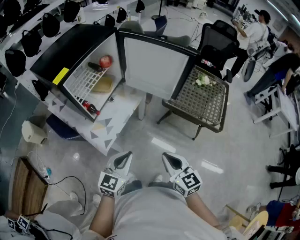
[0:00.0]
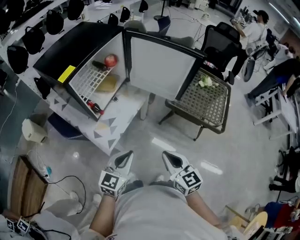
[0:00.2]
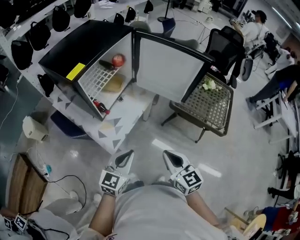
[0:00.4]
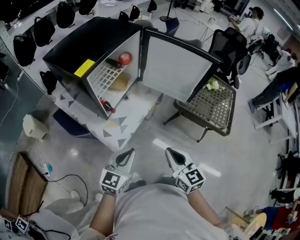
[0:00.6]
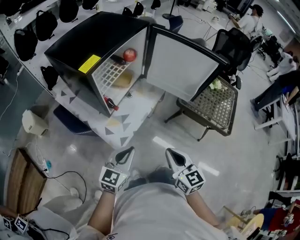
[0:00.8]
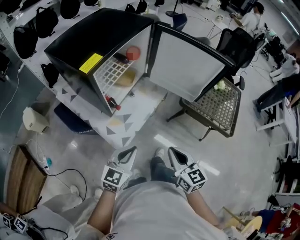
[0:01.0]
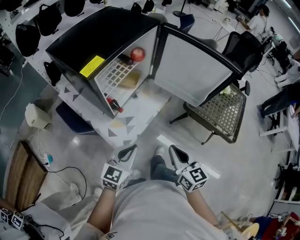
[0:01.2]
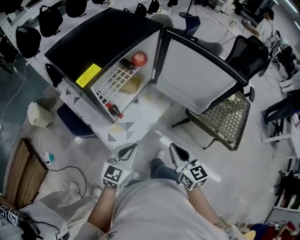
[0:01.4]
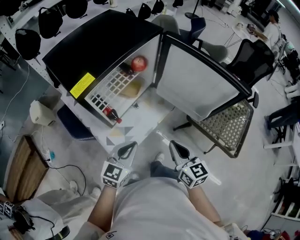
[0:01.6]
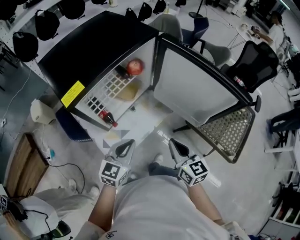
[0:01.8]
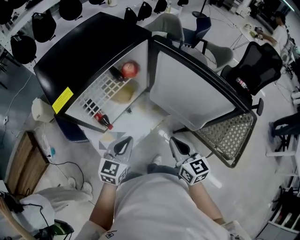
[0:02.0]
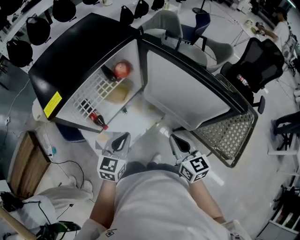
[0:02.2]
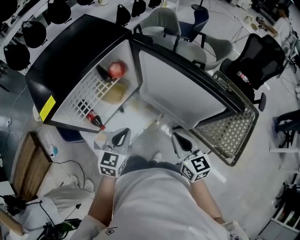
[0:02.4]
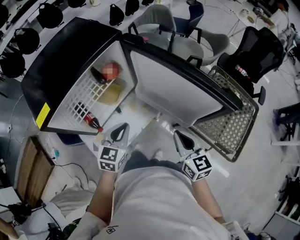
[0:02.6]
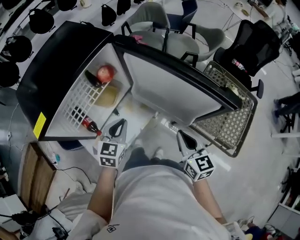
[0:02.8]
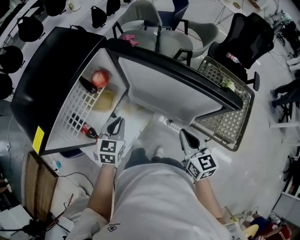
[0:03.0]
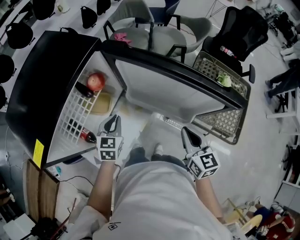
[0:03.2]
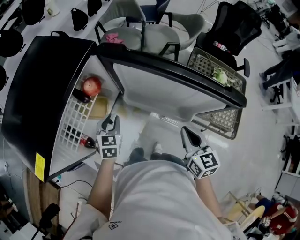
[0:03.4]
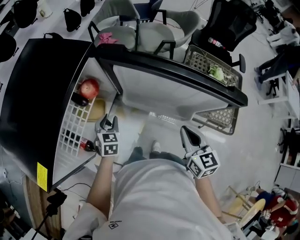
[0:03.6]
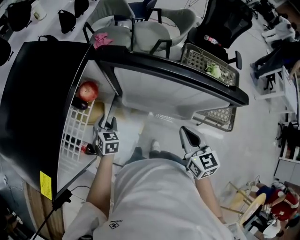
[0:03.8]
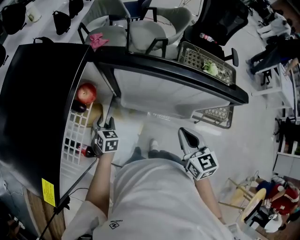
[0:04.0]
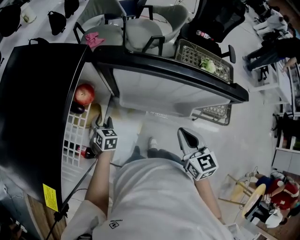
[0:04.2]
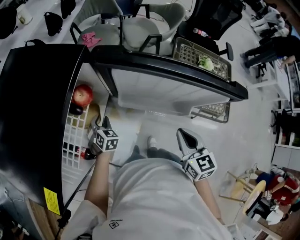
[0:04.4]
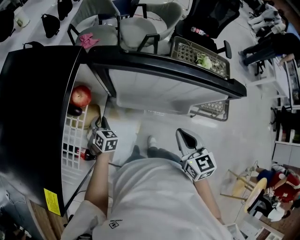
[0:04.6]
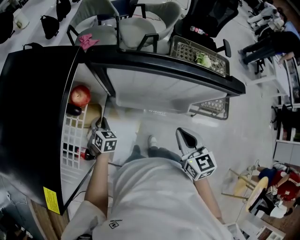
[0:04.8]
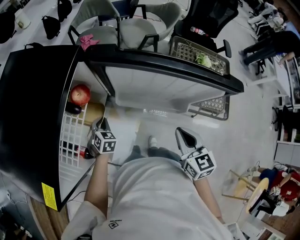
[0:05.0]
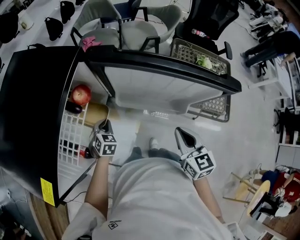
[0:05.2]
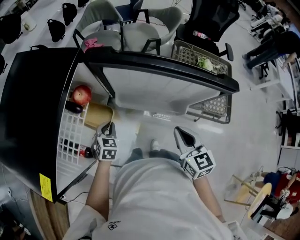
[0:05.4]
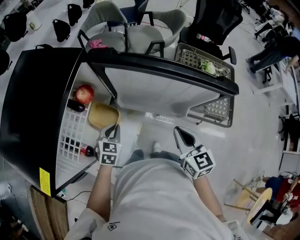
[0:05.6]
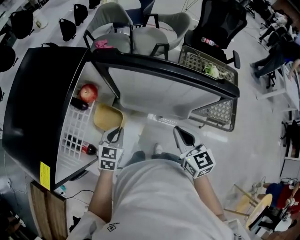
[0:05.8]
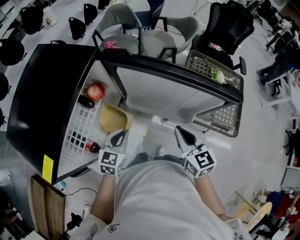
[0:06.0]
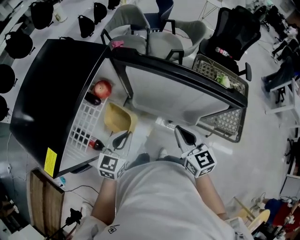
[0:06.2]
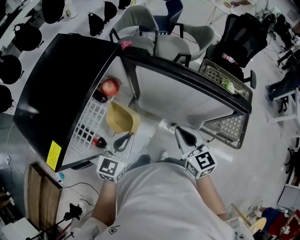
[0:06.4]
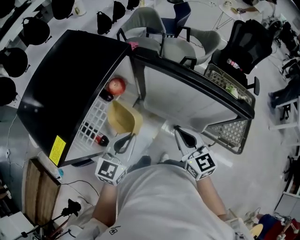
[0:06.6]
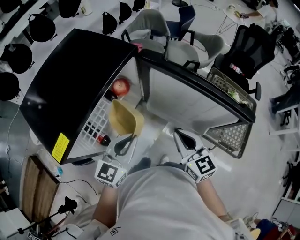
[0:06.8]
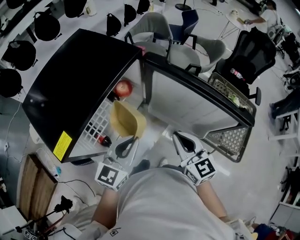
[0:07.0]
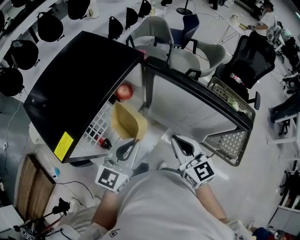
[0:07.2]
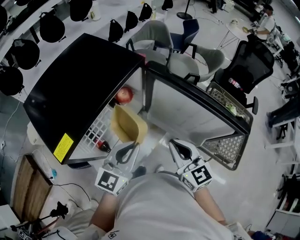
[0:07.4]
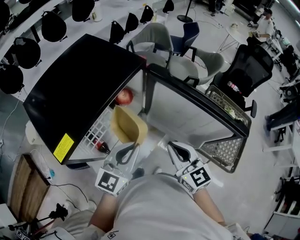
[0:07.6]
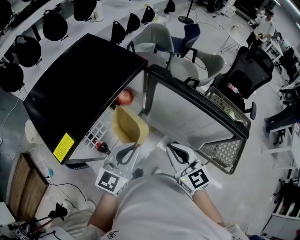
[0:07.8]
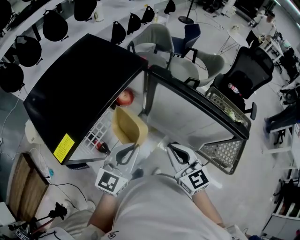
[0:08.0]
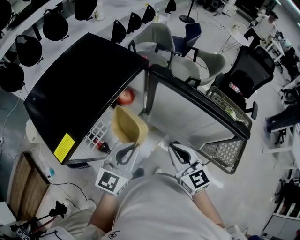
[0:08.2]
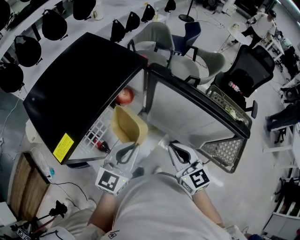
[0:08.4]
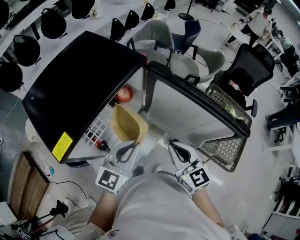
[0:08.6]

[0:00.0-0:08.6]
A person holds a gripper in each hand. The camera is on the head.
0:00.0 to 0:01.4: The two grippers go roughly 15 cm forward and to the left.
0:01.4 to 0:02.8: The right gripper heads to the right and forward, covering some 25 cm. The left gripper heads forward and to the right, covering about 25 cm.
0:02.8 to 0:04.4: The left gripper heads downward, forward and to the left, covering roughly 25 cm, changes its angle by some 30 degrees, and opens up. Meanwhile the right gripper changes its angle by some 20 degrees.
0:04.4 to 0:05.8: The left gripper heads upward, backward and to the right, covering roughly 15 cm, changes its angle by roughly 30 degrees, and closes up.
0:05.8 to 0:07.2: The left gripper heads upward, covering approximately 20 cm, and rotates about 30 degrees, while the right gripper heads to the left and upward, covering some 10 cm, and swivels about 20 degrees.
0:07.2 to 0:08.6: The grippers make only small movements.

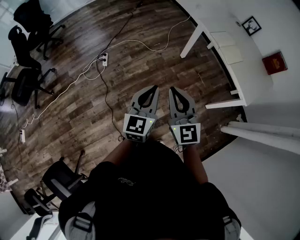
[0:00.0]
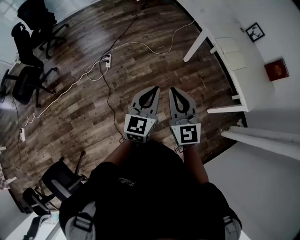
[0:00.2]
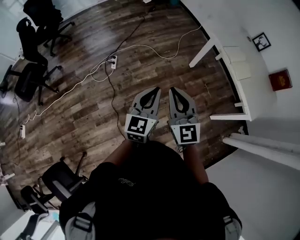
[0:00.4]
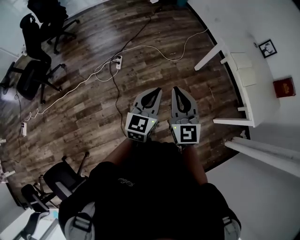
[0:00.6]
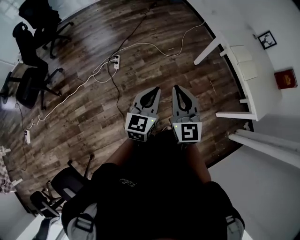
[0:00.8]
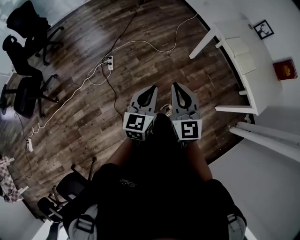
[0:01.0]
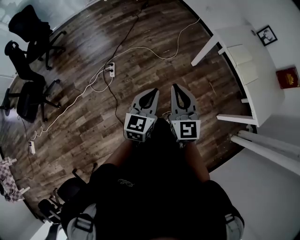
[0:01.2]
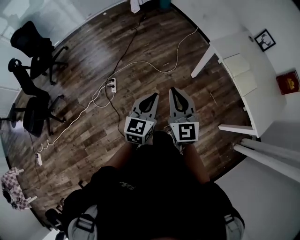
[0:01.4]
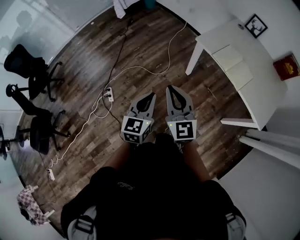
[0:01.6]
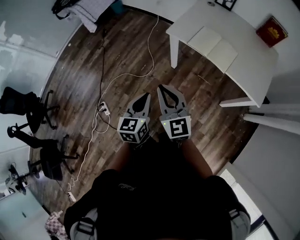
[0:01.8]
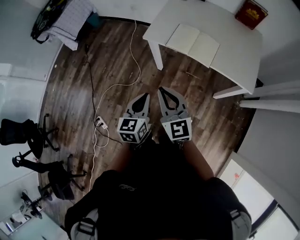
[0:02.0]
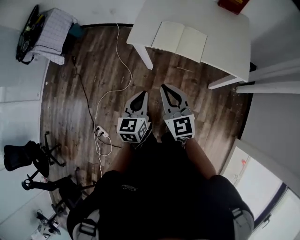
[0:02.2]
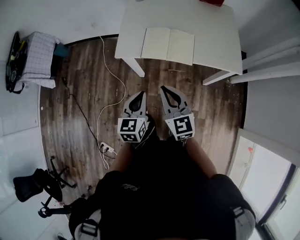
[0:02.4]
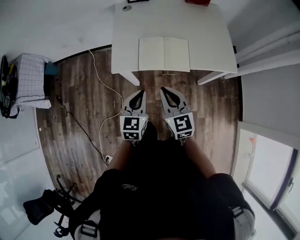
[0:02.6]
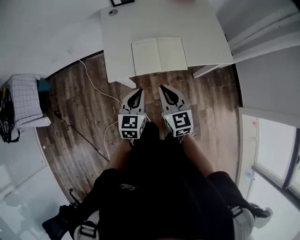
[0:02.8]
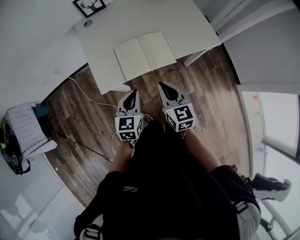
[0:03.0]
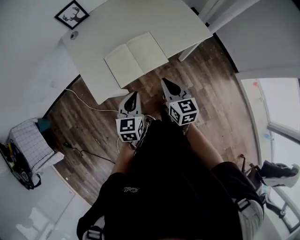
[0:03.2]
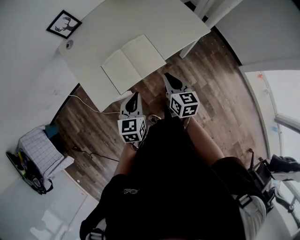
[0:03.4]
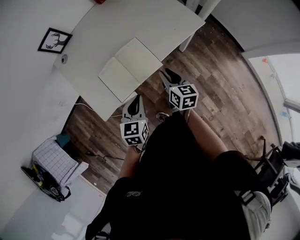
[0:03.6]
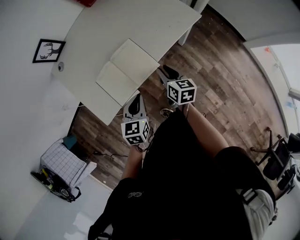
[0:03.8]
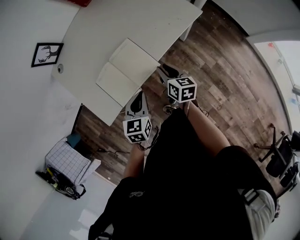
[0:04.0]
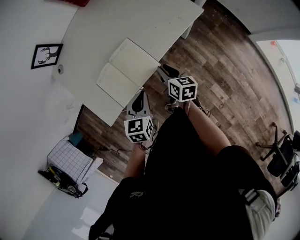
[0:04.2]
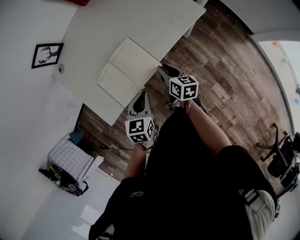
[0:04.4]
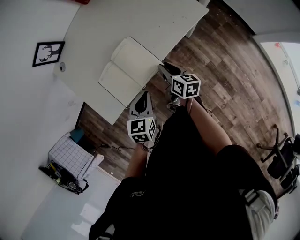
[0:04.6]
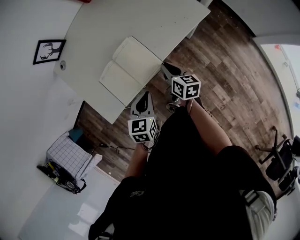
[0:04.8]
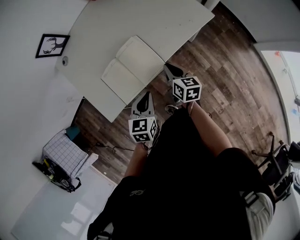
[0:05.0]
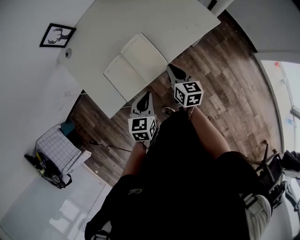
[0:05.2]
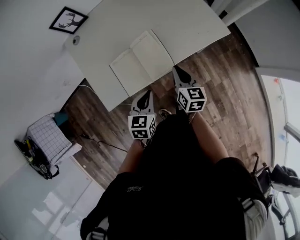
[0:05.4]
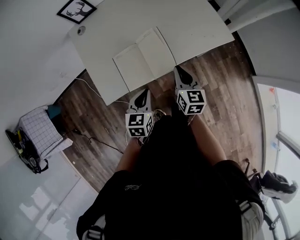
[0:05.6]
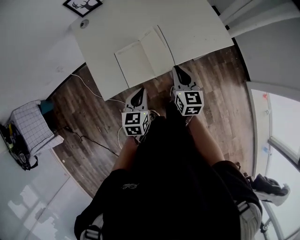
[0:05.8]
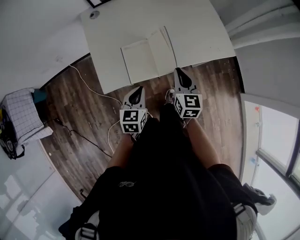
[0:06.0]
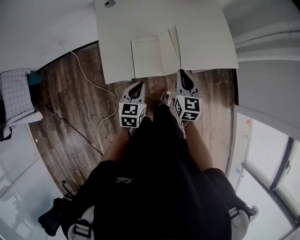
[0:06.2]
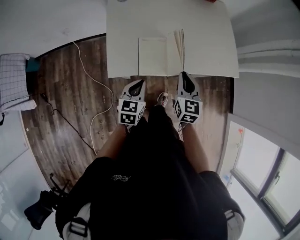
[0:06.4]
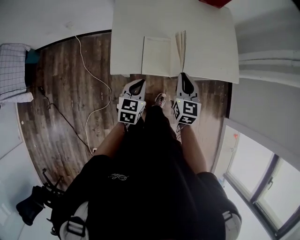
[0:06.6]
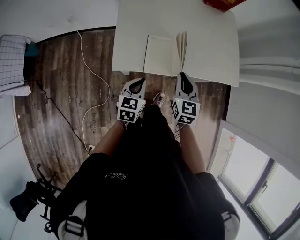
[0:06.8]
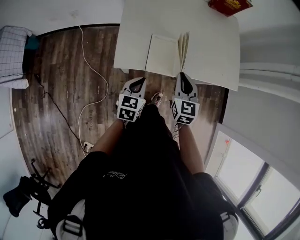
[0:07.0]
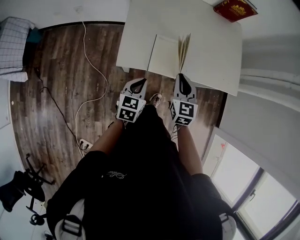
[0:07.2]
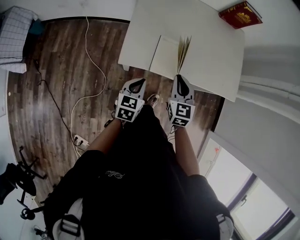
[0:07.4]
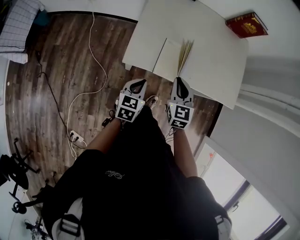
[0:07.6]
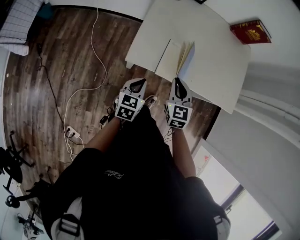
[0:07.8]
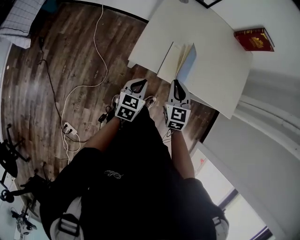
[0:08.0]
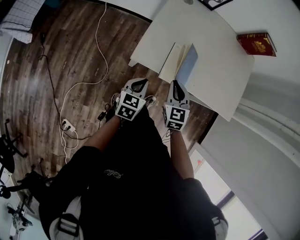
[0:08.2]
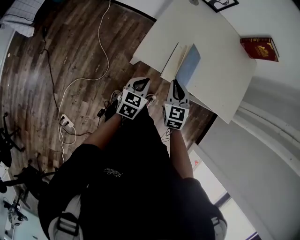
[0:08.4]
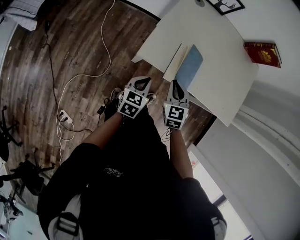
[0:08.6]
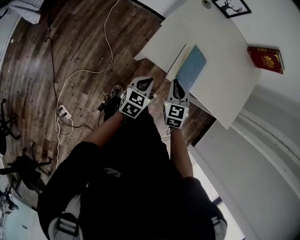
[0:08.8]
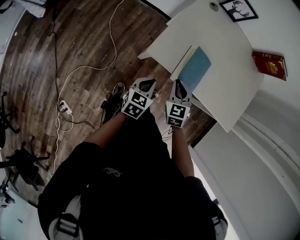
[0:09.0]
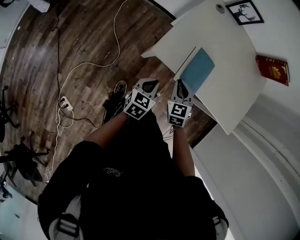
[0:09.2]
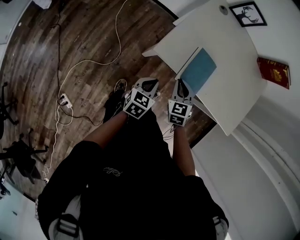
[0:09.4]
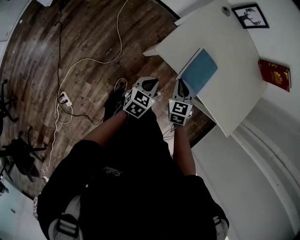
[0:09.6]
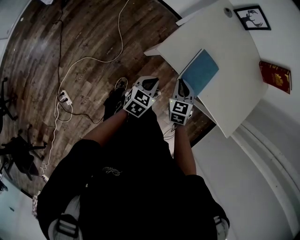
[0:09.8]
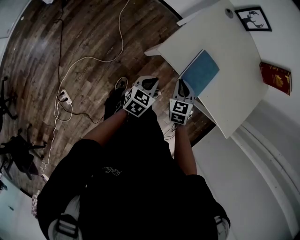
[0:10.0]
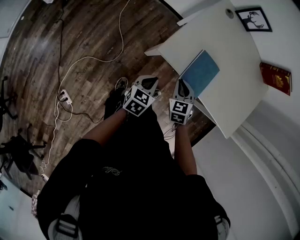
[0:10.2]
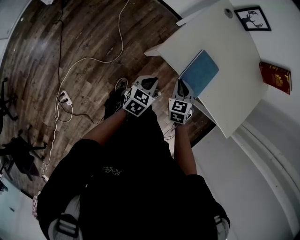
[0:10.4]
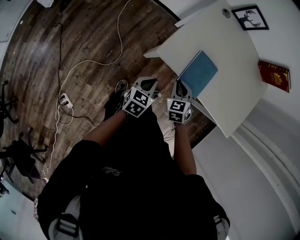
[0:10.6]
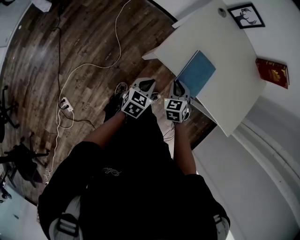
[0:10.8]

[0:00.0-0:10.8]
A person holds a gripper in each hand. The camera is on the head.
0:00.0 to 0:01.6: Both grippers travel together forward, approximately 30 cm.
0:01.6 to 0:03.0: The left gripper moves approximately 40 cm, and turns by roughly 60 degrees; the right gripper moves some 35 cm, and swivels about 70 degrees.
0:03.0 to 0:04.6: The right gripper goes about 25 cm downward, forward and to the right, twists about 40 degrees clockwise, seen from behind, and opens up. Meanwhile the left gripper goes roughly 15 cm to the right, forward and downward, and changes its angle by some 20 degrees.
0:04.6 to 0:06.2: The right gripper travels upward and to the left by approximately 15 cm, and rotates around the line of its fingers by some 50 degrees, counterclockwise from behind, while the left gripper heads to the left, covering about 15 cm, and rotates some 30 degrees.
0:06.2 to 0:07.8: The right gripper is displaced to the left by roughly 10 cm, and rotates some 30 degrees. The left gripper travels to the left by roughly 5 cm.
0:07.8 to 0:09.2: The right gripper heads downward and to the left, covering some 10 cm, and swivels about 20 degrees.
0:09.2 to 0:10.8: There are only small adjustments of the grippers.

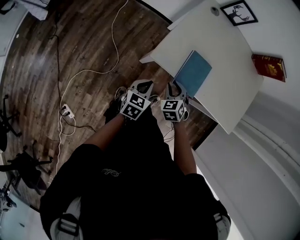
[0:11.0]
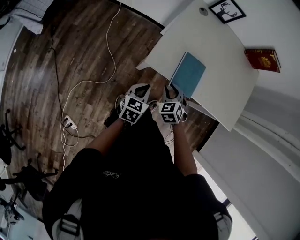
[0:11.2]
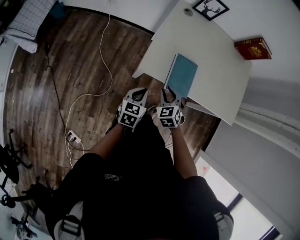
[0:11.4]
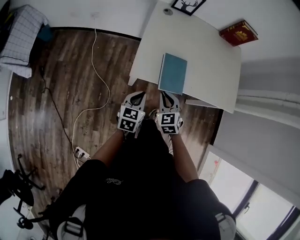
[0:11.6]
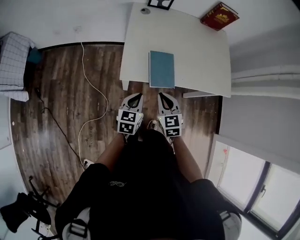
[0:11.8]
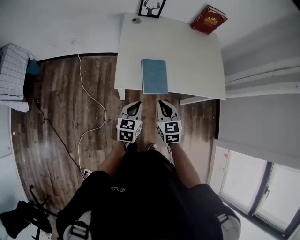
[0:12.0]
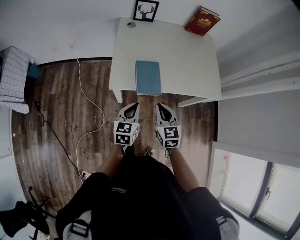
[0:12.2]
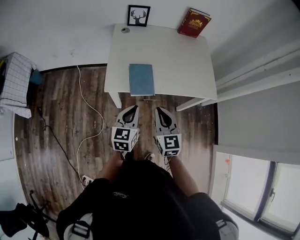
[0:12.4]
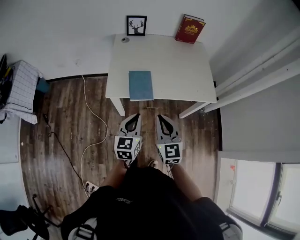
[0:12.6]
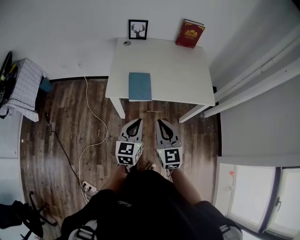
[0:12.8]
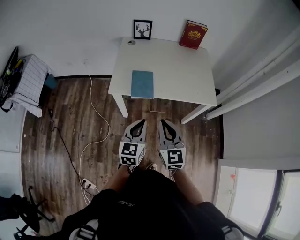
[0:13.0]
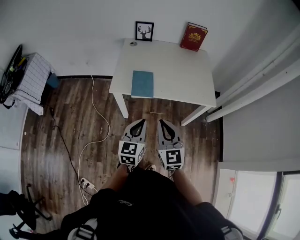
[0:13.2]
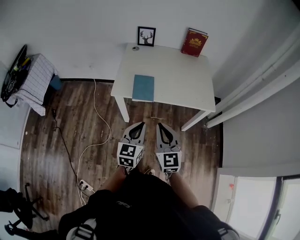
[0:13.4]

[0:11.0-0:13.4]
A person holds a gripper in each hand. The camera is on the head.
0:11.0 to 0:12.2: The left gripper is displaced upward and to the right by about 15 cm. Meanwhile the right gripper is displaced upward, to the right and backward by some 20 cm, turns by approximately 50 degrees, and closes.
0:12.2 to 0:13.4: The right gripper moves backward, upward and to the right, roughly 20 cm, and changes its angle by some 20 degrees, while the left gripper moves backward, to the right and upward, roughly 20 cm.

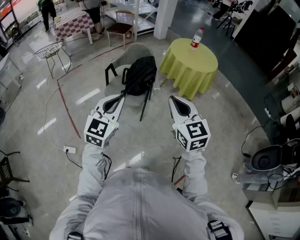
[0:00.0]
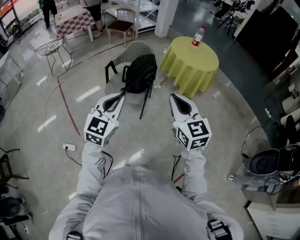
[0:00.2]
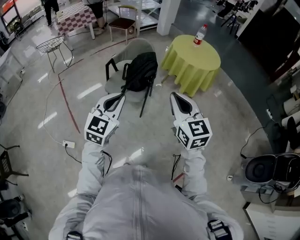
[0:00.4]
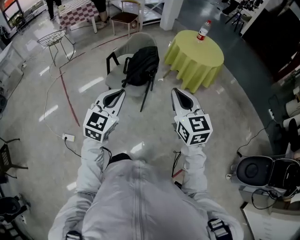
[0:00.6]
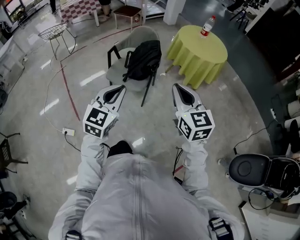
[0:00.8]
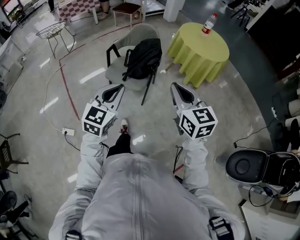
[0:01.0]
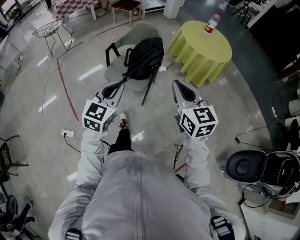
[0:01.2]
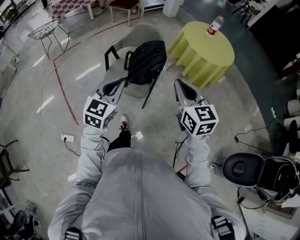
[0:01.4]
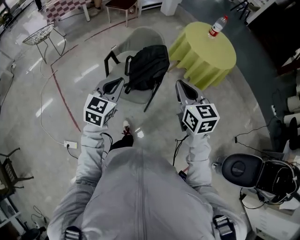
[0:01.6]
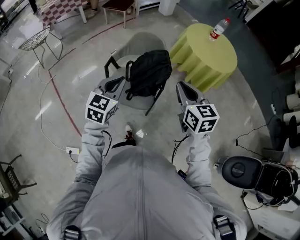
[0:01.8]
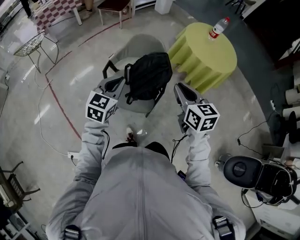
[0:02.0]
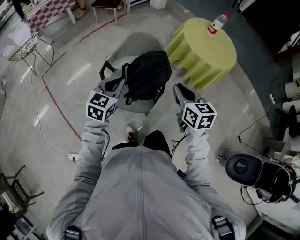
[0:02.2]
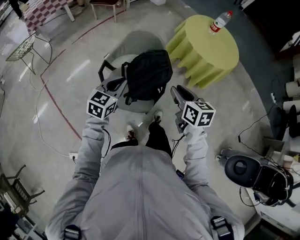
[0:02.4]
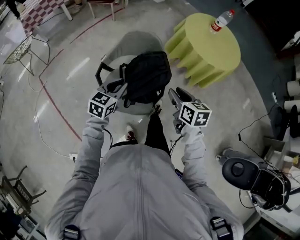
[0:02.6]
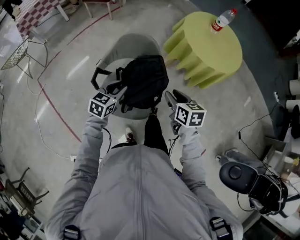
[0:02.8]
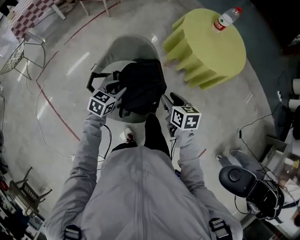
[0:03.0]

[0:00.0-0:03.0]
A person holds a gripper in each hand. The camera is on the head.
0:00.0 to 0:01.6: The right gripper moves forward, some 25 cm; the left gripper is displaced forward and downward by about 25 cm.
0:01.6 to 0:03.0: Both grippers move forward and downward, approximately 35 cm. The right gripper rotates roughly 40 degrees, and opens its fingers. The left gripper swivels some 30 degrees, and opens up.
